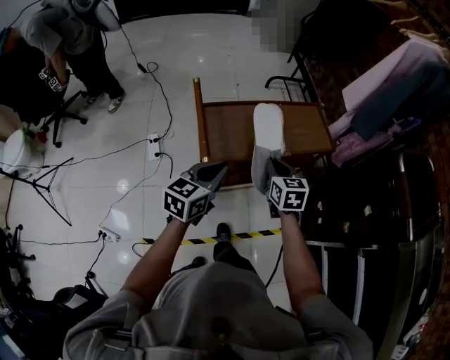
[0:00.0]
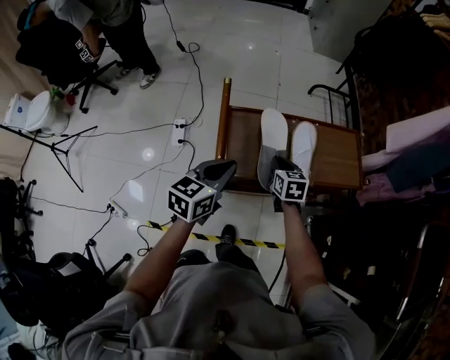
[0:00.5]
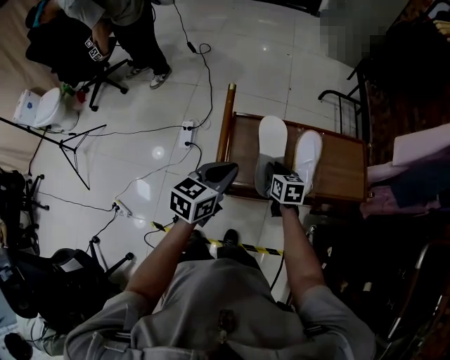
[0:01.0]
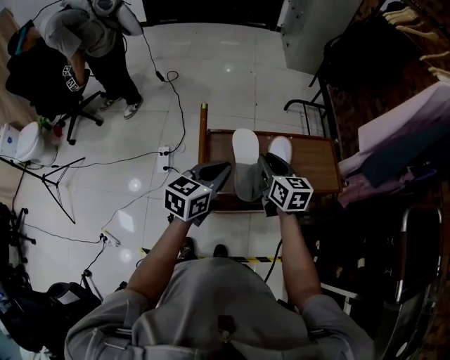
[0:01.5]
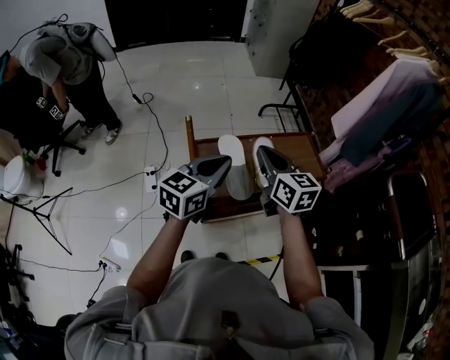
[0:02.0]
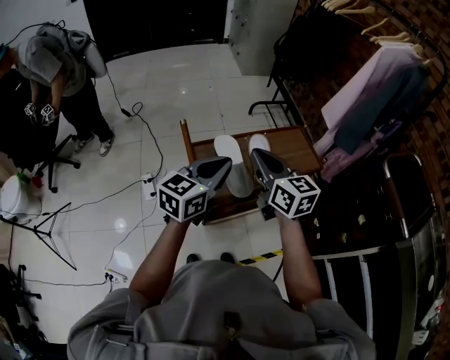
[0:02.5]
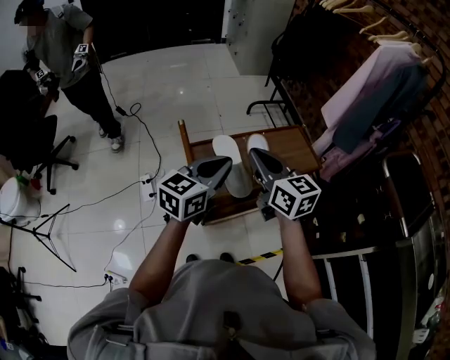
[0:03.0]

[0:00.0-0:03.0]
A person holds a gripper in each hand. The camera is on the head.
0:00.0 to 0:01.5: Both grippers move forward, about 15 cm. The right gripper travels downward and back again, about 15 cm each way, turns by roughly 20 degrees, and opens its fingers.
0:01.5 to 0:03.0: The right gripper shifts about 15 cm upward and backward, and closes up; the left gripper moves upward, roughly 10 cm.

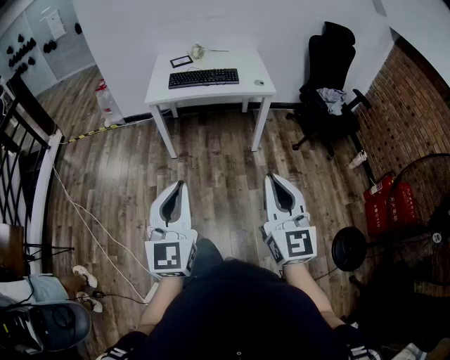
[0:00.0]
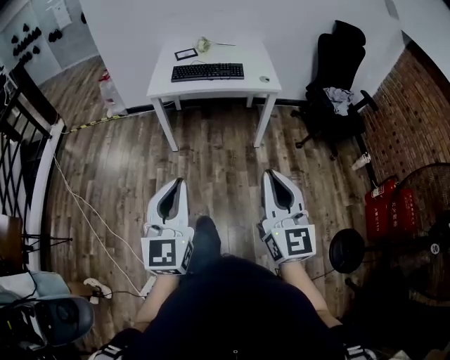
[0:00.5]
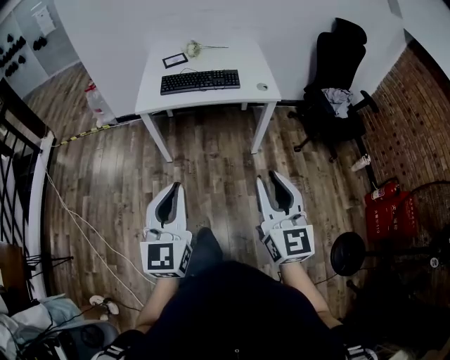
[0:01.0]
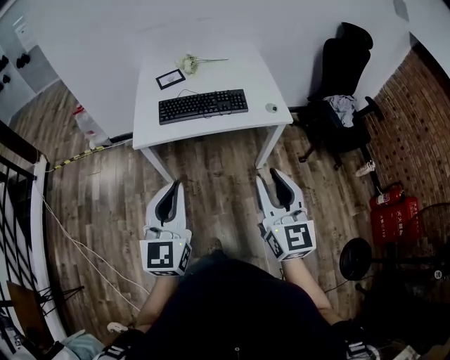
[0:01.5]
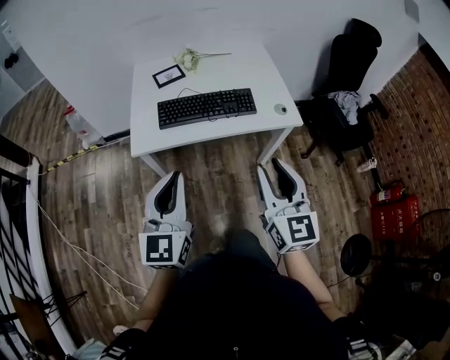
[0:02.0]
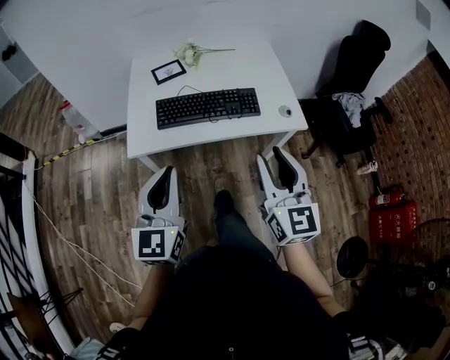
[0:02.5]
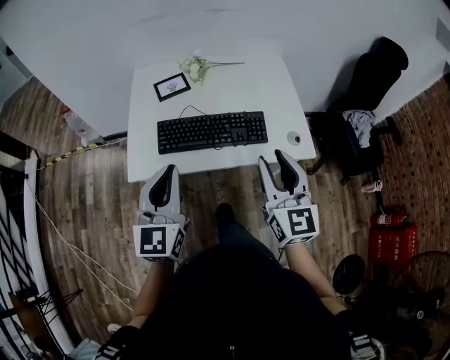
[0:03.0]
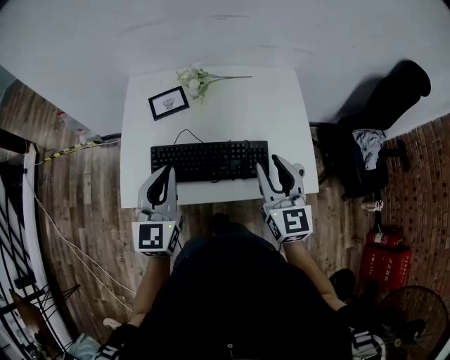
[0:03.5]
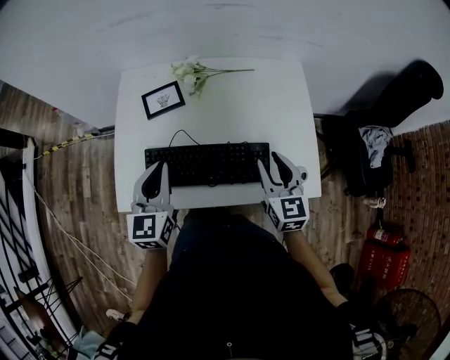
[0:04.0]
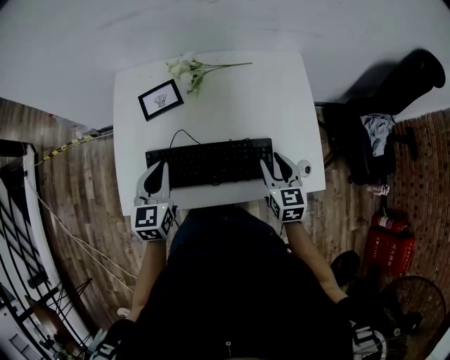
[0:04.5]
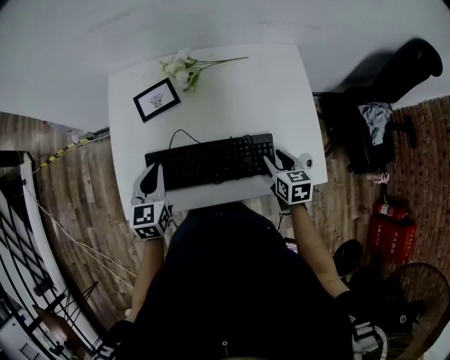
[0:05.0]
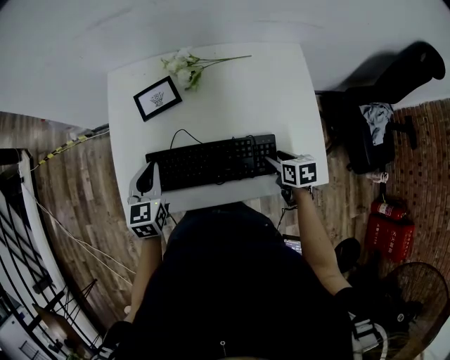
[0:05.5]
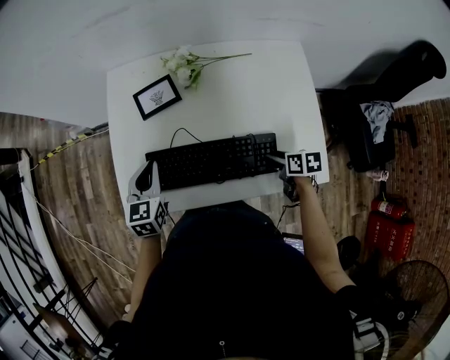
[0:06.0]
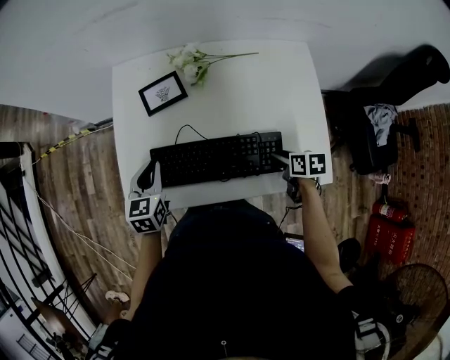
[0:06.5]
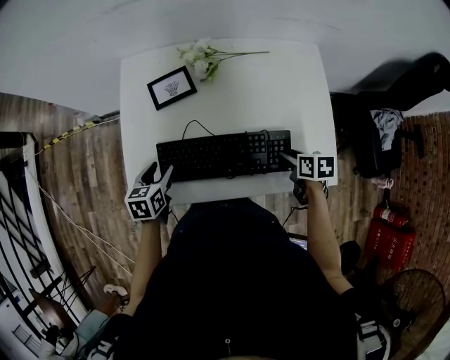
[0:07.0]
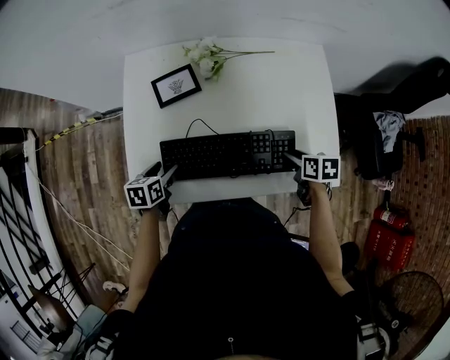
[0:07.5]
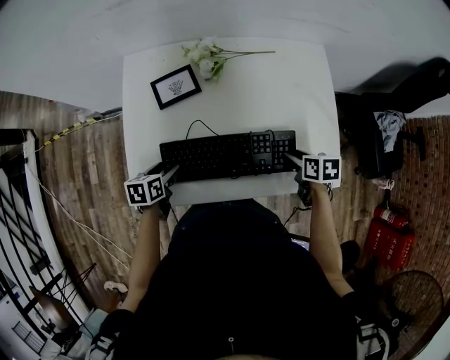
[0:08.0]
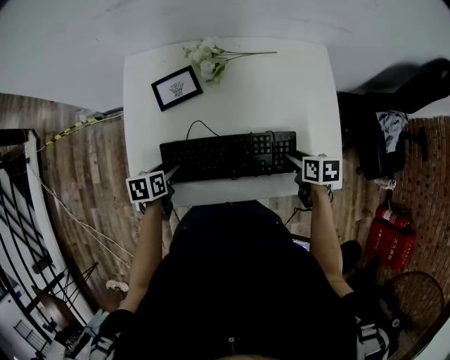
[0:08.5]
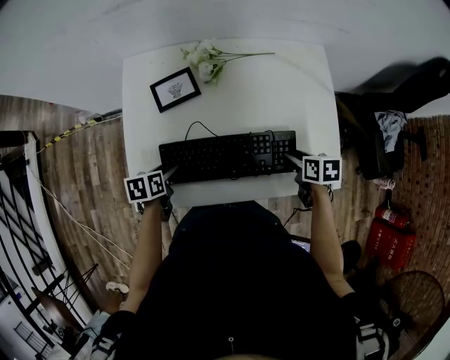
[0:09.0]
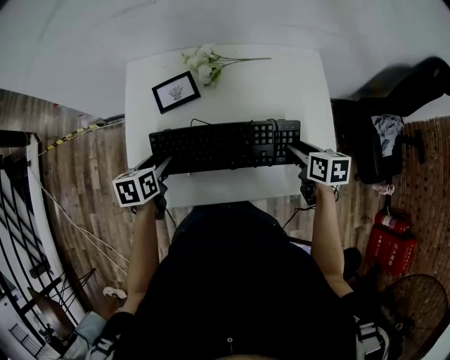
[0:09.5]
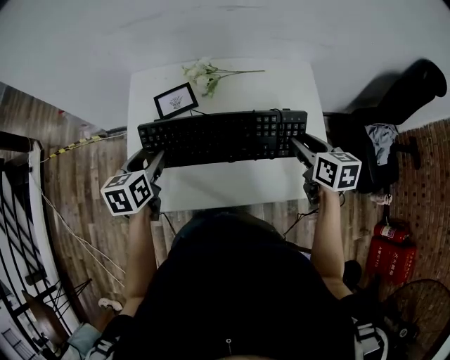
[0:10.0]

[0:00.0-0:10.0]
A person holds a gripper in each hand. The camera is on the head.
0:00.0 to 0:02.0: The two grippers travel together, forward, some 50 cm. The right gripper opens up.
0:02.0 to 0:04.0: Both grippers travel together forward, some 40 cm. The right gripper rotates some 20 degrees.
0:04.0 to 0:06.0: The right gripper shifts some 20 cm downward, and tips its fingers downward by about 40 degrees. The left gripper goes some 10 cm downward and to the left.
0:06.0 to 0:08.0: The left gripper is displaced downward by some 10 cm, changes its angle by some 40 degrees, and opens its fingers.
0:08.0 to 0:10.0: The two grippers go some 15 cm upward. The left gripper rotates roughly 20 degrees. Meanwhile the right gripper changes its angle by approximately 30 degrees.

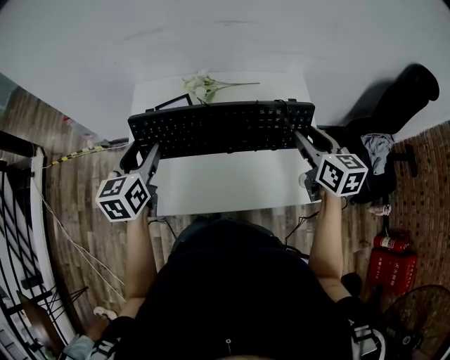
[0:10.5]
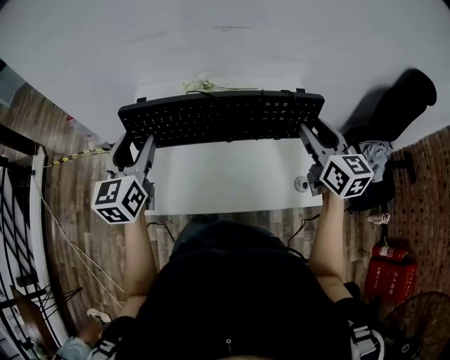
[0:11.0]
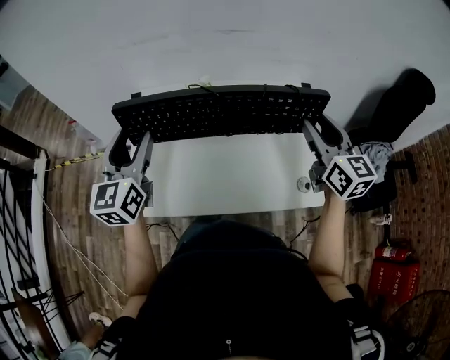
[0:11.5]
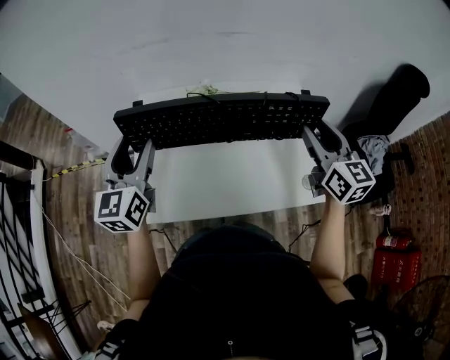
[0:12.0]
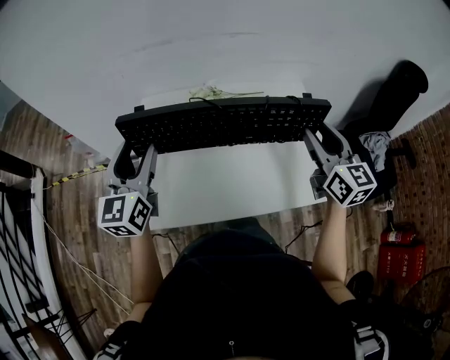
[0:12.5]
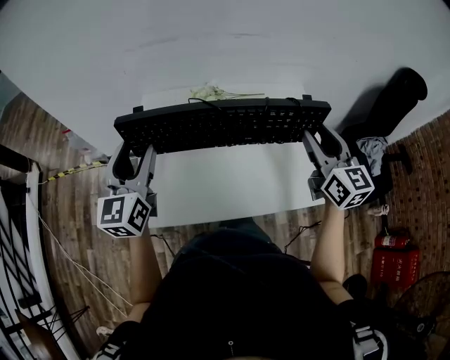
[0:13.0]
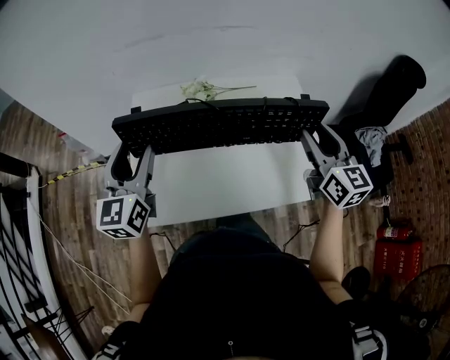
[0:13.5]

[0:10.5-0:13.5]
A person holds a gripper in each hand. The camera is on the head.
0:10.5 to 0:12.0: Both grippers travel together upward, some 10 cm. The left gripper rotates approximately 20 degrees.
0:12.0 to 0:13.5: The grippers move only a little.

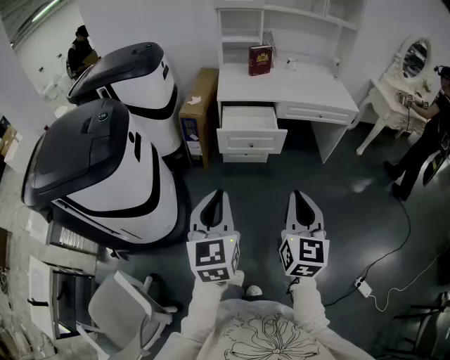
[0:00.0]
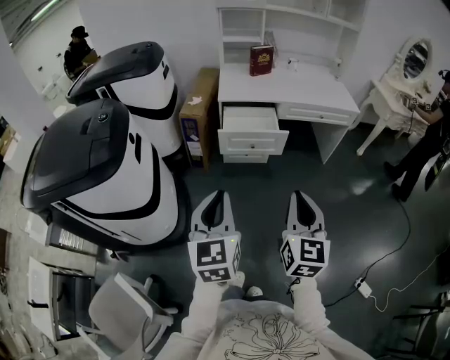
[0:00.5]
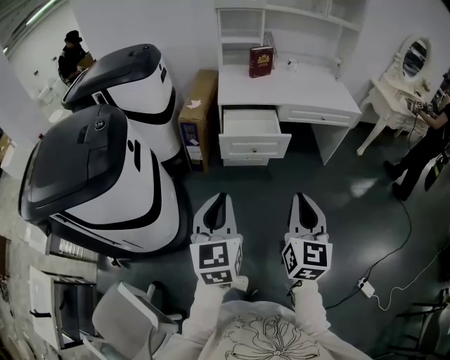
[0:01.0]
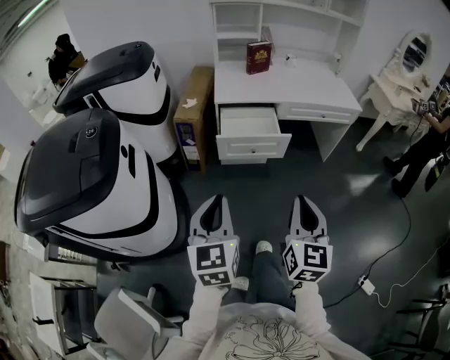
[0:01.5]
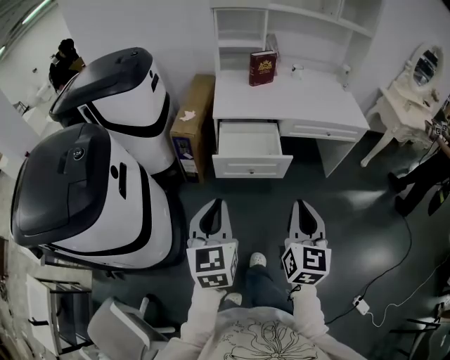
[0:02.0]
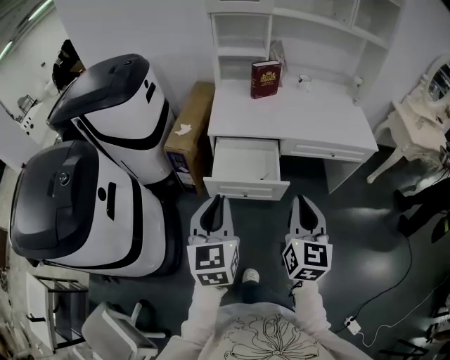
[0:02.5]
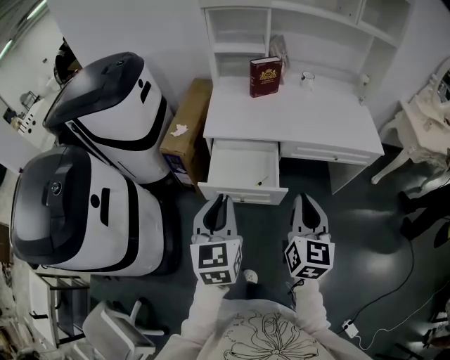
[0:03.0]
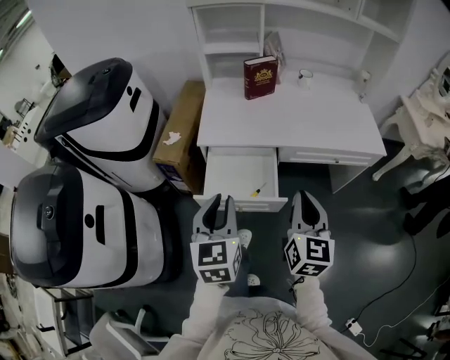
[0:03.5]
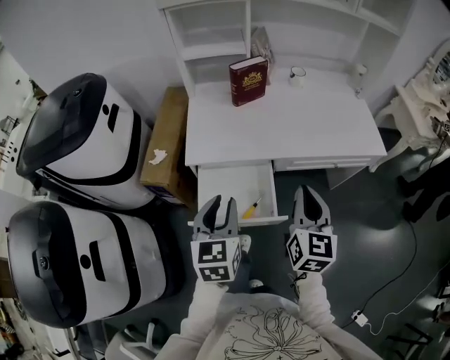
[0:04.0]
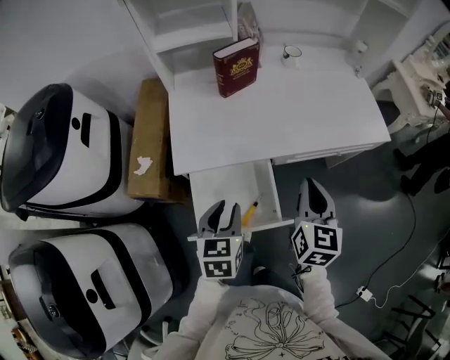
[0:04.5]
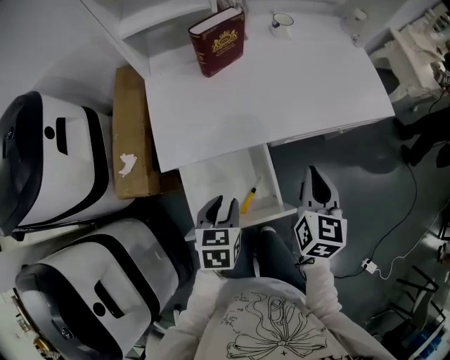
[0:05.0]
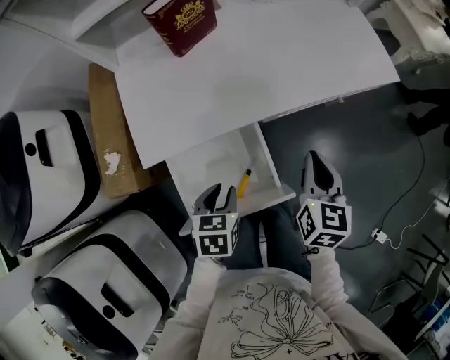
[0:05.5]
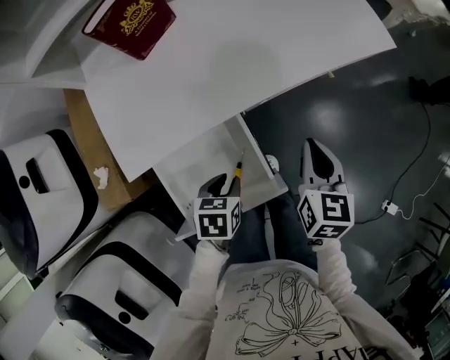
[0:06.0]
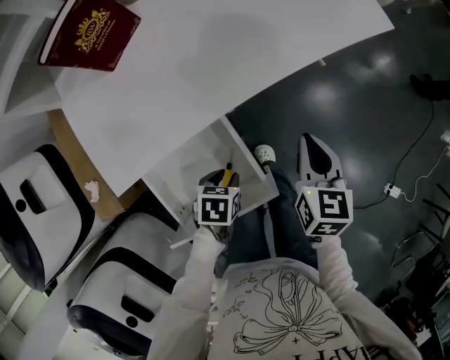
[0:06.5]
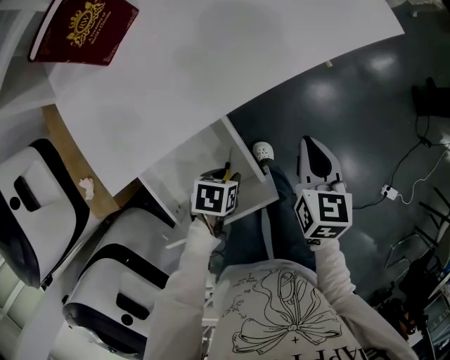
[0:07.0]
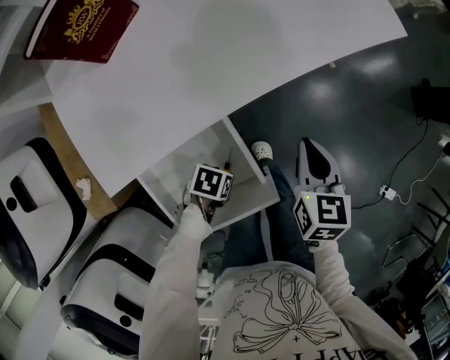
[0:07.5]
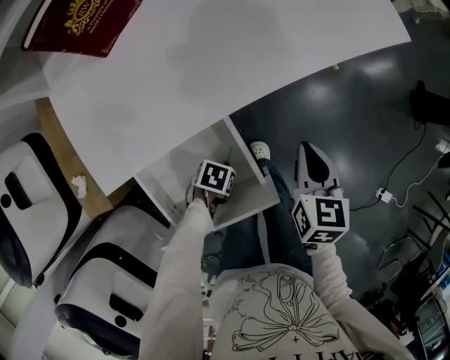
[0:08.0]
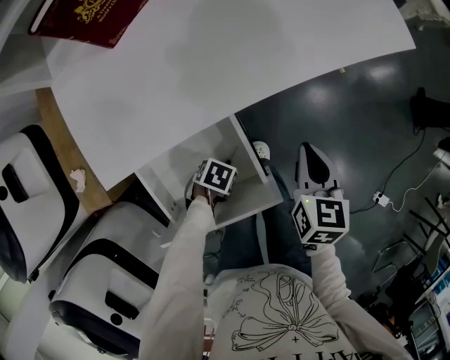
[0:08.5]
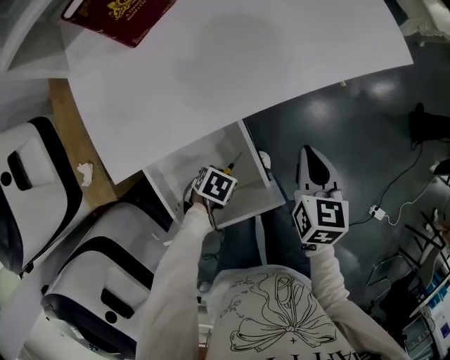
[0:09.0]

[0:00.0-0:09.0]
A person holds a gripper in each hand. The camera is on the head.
0:00.0 to 0:02.0: Both grippers move forward, some 20 cm.
0:02.0 to 0:04.5: The pair of grippers is taken forward, approximately 50 cm. The left gripper turns by about 30 degrees, and opens its fingers.
0:04.5 to 0:07.0: The two grippers go some 25 cm downward. The left gripper turns by about 60 degrees. Meanwhile the right gripper swivels about 30 degrees.

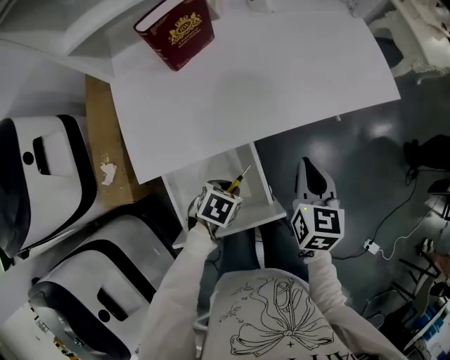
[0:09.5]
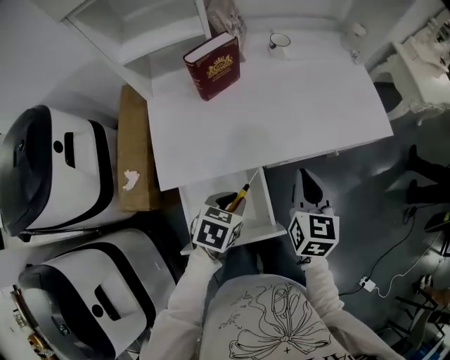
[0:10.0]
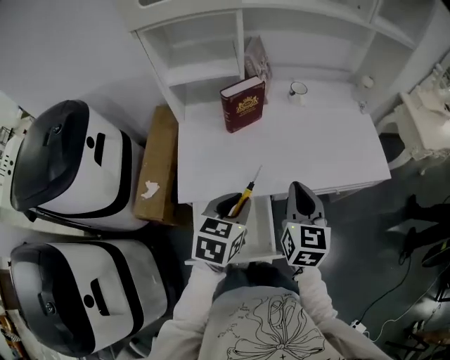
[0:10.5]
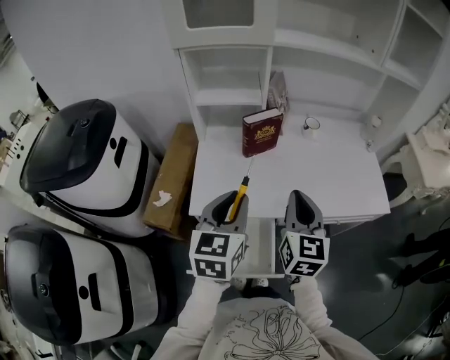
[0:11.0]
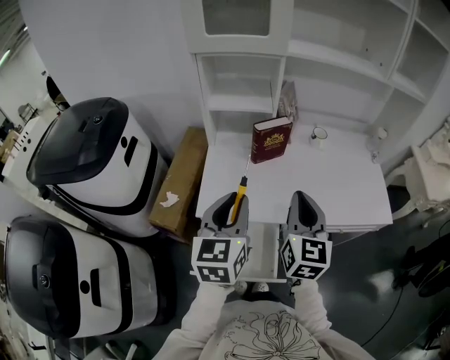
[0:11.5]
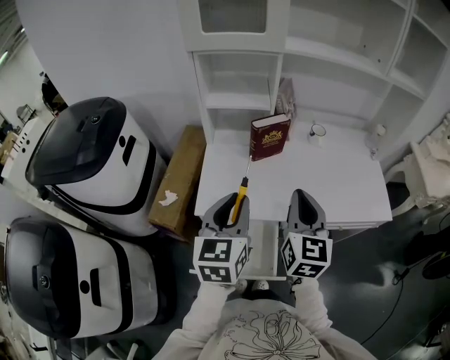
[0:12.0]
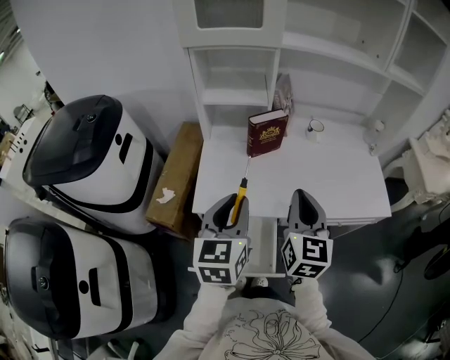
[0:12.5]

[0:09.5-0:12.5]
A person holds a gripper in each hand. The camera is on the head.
0:09.5 to 0:11.0: The right gripper travels upward by some 25 cm, and turns by roughly 30 degrees. Meanwhile the left gripper moves upward, approximately 40 cm, and angles its fingers upward, by some 50 degrees.
0:11.0 to 0:12.5: The grippers move only a little.
